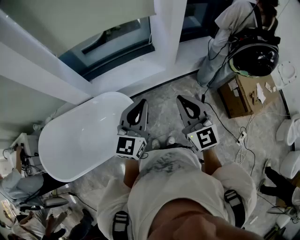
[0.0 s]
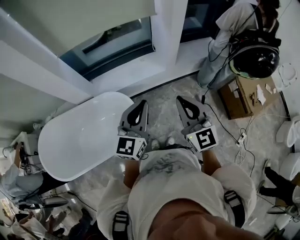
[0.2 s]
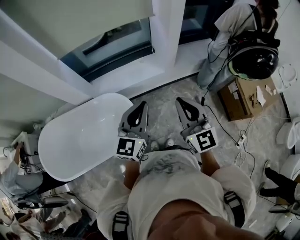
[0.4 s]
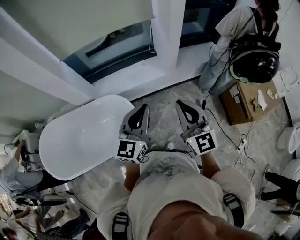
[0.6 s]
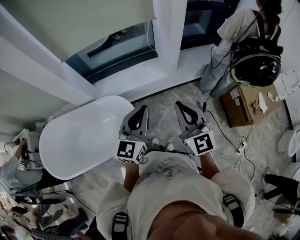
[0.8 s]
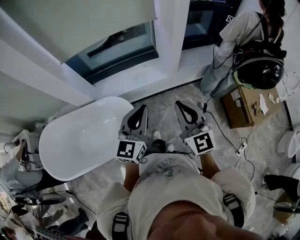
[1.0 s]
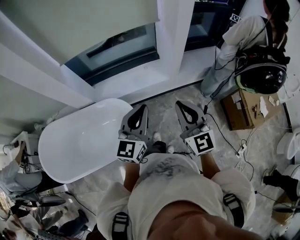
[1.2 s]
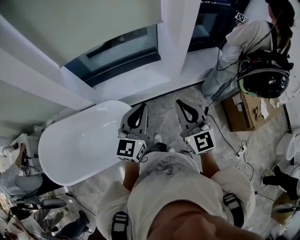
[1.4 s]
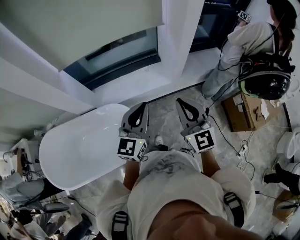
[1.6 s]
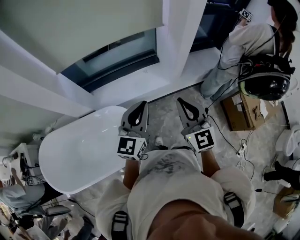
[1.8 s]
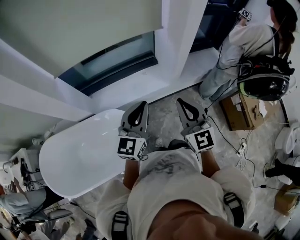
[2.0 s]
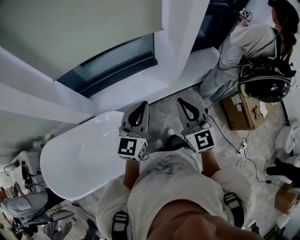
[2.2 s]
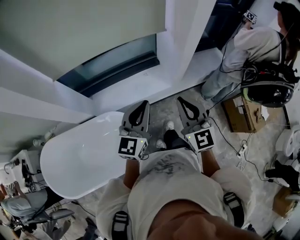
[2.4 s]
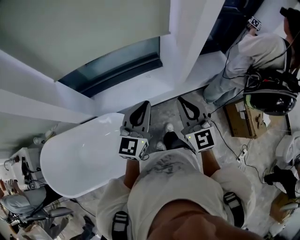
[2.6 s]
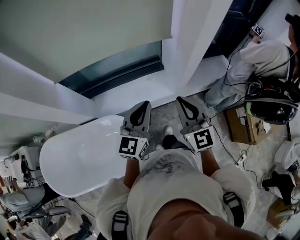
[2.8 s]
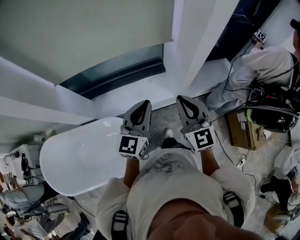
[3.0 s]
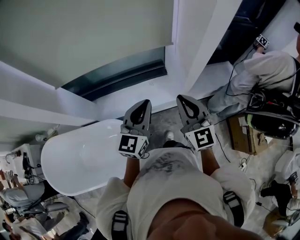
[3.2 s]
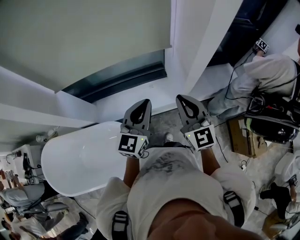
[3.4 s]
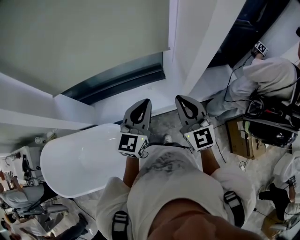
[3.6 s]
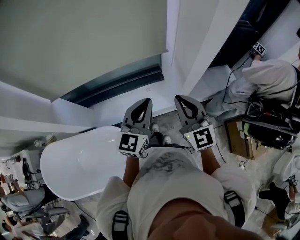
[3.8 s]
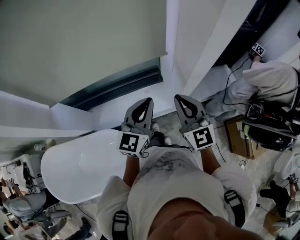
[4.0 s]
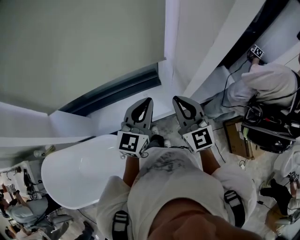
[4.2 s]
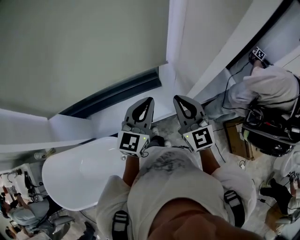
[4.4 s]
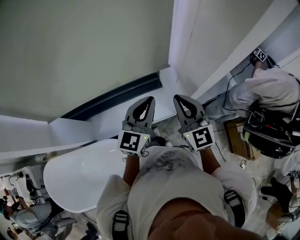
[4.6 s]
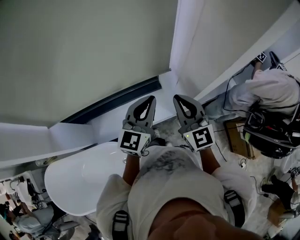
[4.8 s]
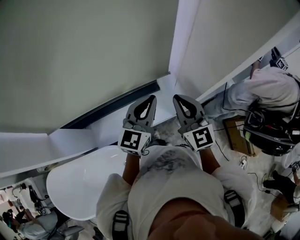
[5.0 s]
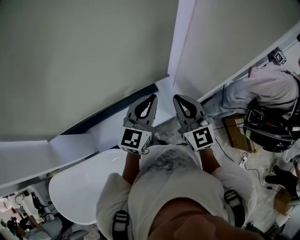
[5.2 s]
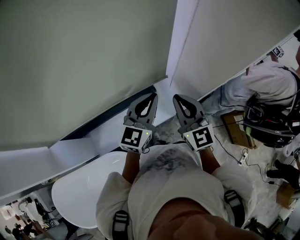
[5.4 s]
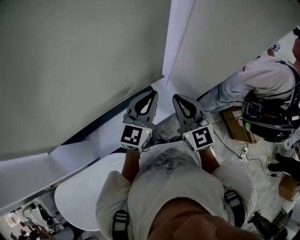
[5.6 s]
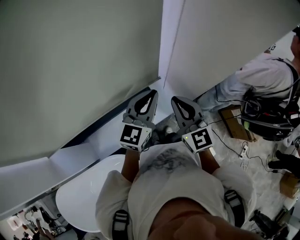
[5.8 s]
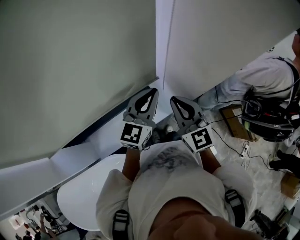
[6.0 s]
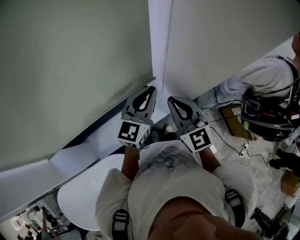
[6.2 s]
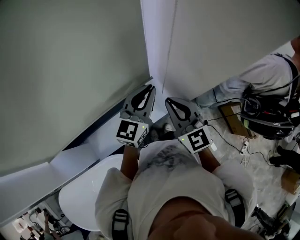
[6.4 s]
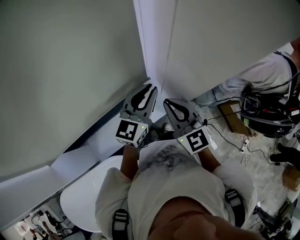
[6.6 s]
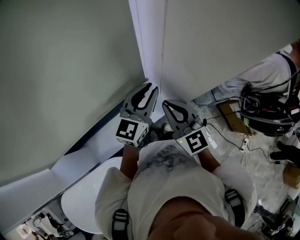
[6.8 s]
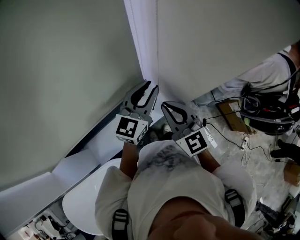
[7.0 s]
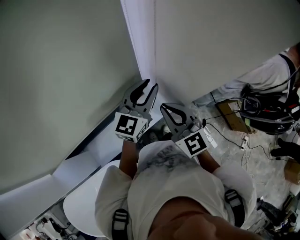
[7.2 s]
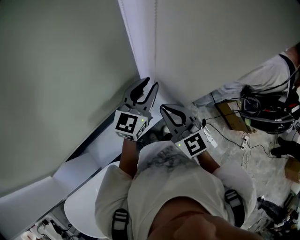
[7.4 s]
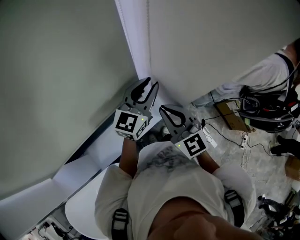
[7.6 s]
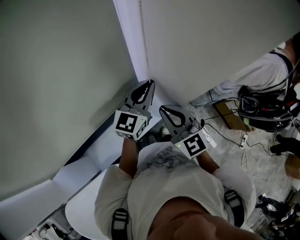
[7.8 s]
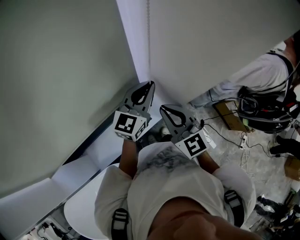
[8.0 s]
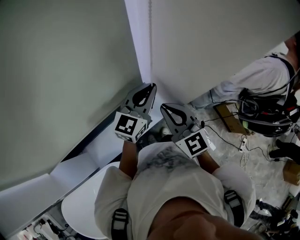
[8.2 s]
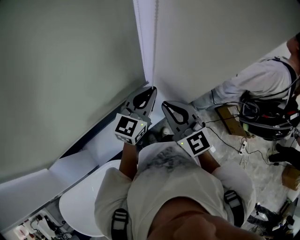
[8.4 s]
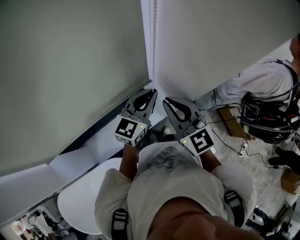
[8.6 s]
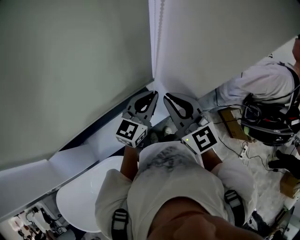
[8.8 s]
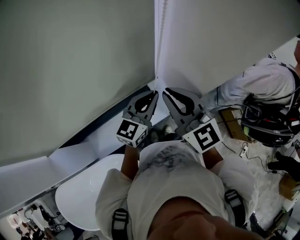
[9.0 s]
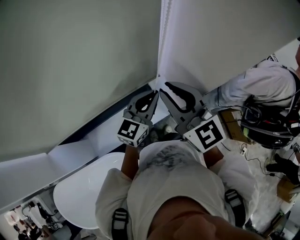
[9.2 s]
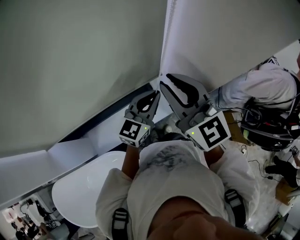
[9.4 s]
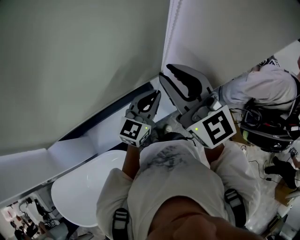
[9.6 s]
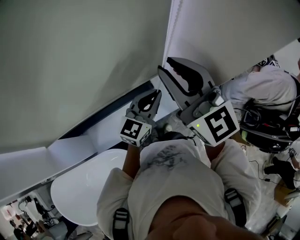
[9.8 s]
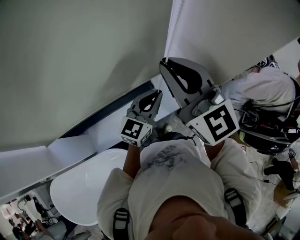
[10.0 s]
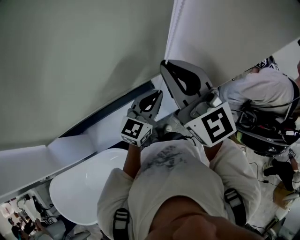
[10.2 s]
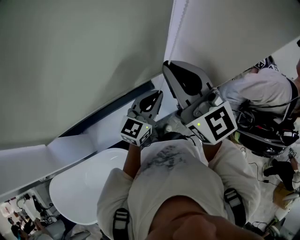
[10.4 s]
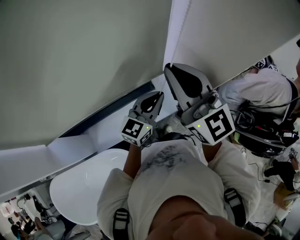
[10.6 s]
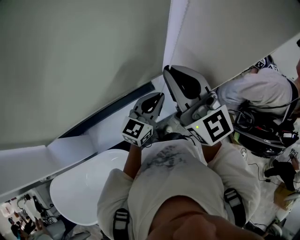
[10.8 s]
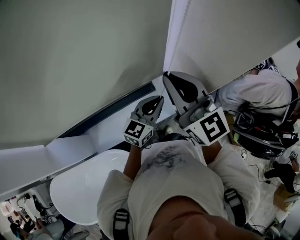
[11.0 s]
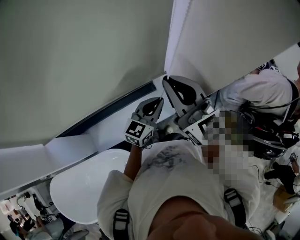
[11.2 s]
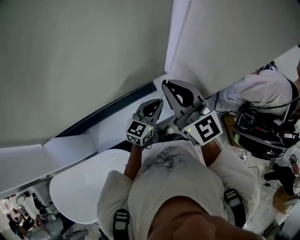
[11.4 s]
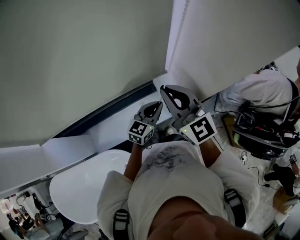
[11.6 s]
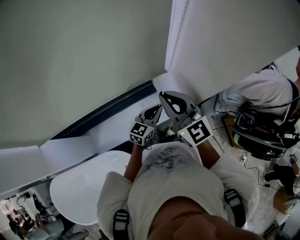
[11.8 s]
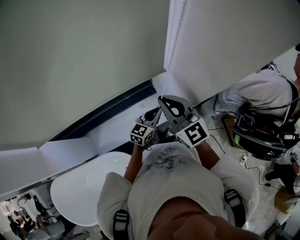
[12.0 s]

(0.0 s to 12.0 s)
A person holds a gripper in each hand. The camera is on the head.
0.0 s - 1.6 s: Both grippers travel together forward, roughly 10 cm.
1.6 s - 3.0 s: Both grippers move forward, approximately 15 cm.
3.0 s - 4.4 s: Both grippers travel together forward, about 15 cm.
4.4 s - 6.0 s: The right gripper moves forward, roughly 5 cm. Meanwhile the left gripper moves forward, approximately 10 cm.
6.0 s - 7.6 s: The left gripper is displaced forward by about 5 cm, and opens up.
7.6 s - 9.0 s: The right gripper goes some 10 cm upward. The left gripper shifts approximately 5 cm backward, and closes up.
9.0 s - 10.4 s: The right gripper heads upward, covering roughly 10 cm.
10.4 s - 12.0 s: The two grippers go about 15 cm downward.

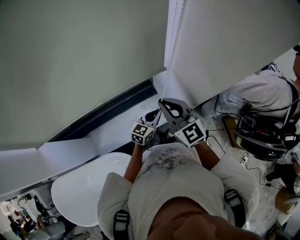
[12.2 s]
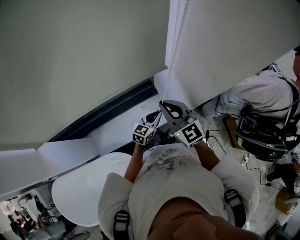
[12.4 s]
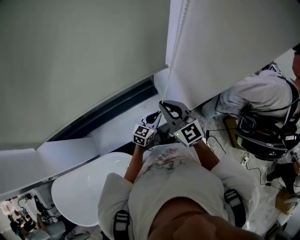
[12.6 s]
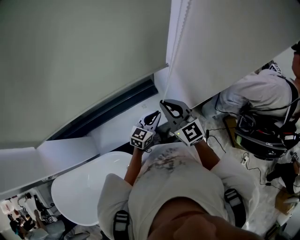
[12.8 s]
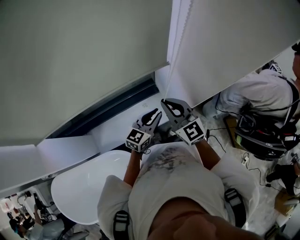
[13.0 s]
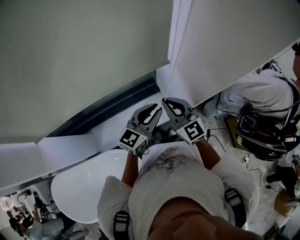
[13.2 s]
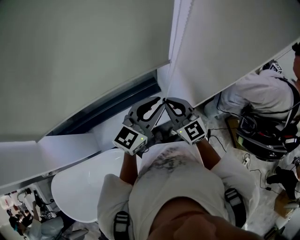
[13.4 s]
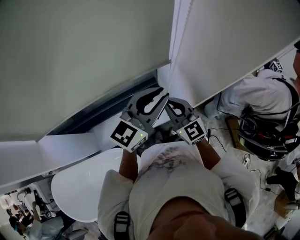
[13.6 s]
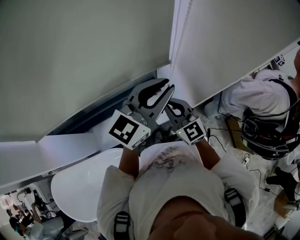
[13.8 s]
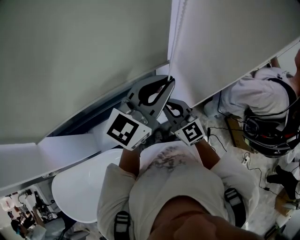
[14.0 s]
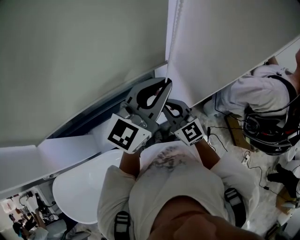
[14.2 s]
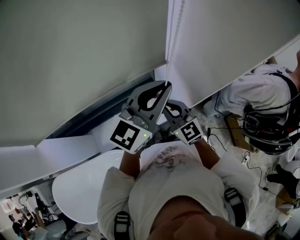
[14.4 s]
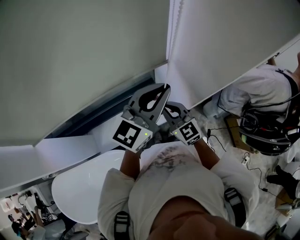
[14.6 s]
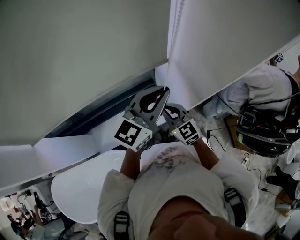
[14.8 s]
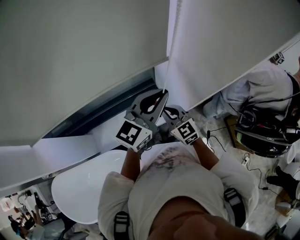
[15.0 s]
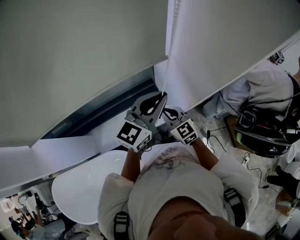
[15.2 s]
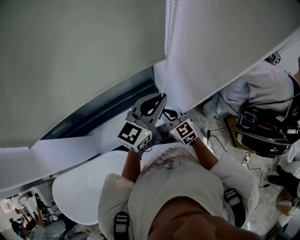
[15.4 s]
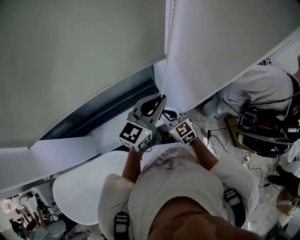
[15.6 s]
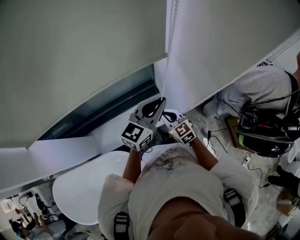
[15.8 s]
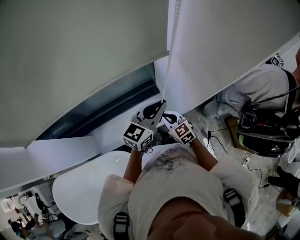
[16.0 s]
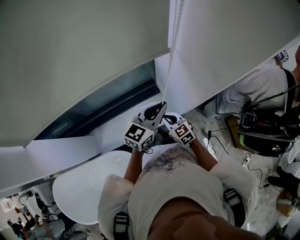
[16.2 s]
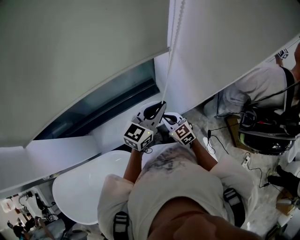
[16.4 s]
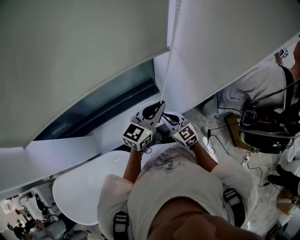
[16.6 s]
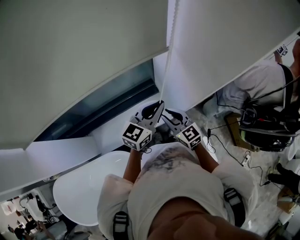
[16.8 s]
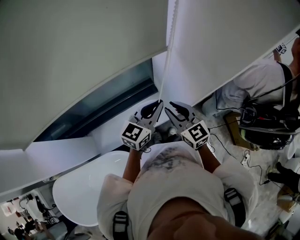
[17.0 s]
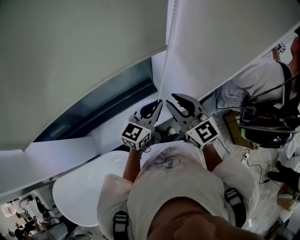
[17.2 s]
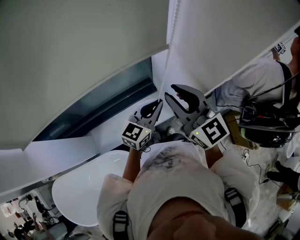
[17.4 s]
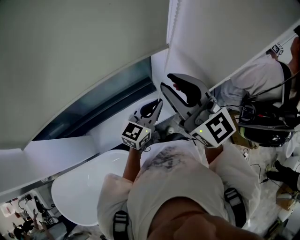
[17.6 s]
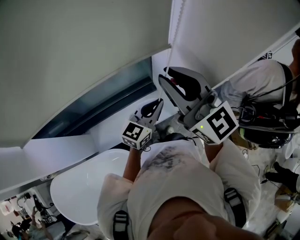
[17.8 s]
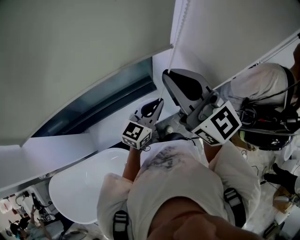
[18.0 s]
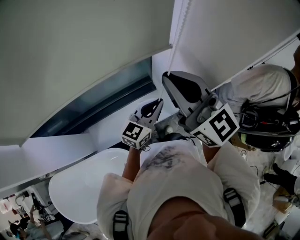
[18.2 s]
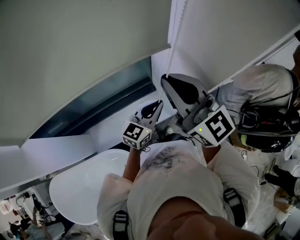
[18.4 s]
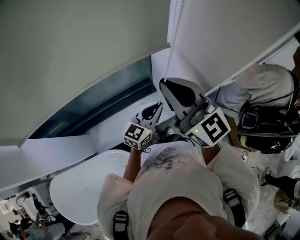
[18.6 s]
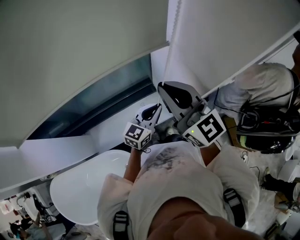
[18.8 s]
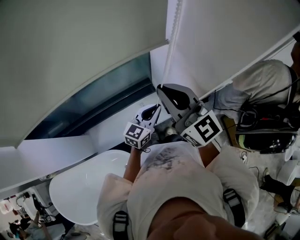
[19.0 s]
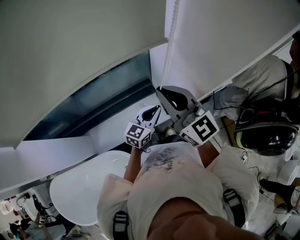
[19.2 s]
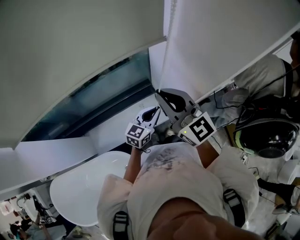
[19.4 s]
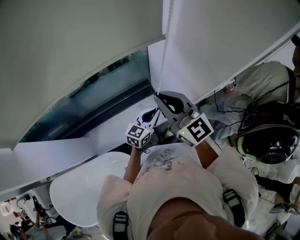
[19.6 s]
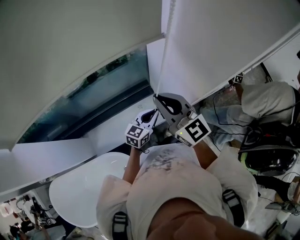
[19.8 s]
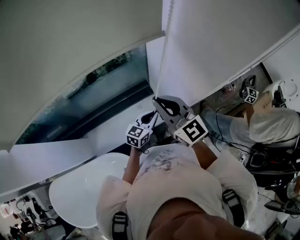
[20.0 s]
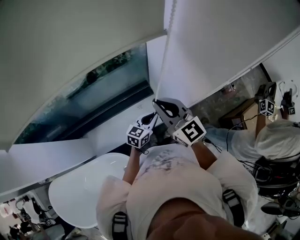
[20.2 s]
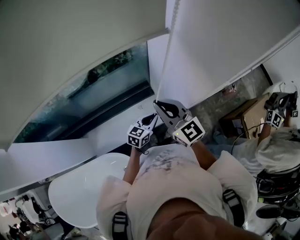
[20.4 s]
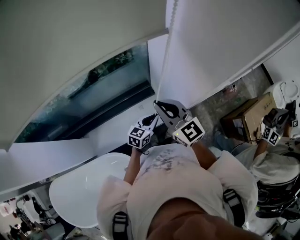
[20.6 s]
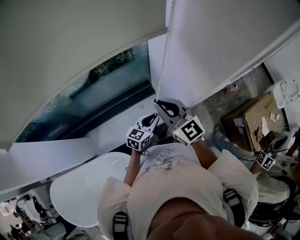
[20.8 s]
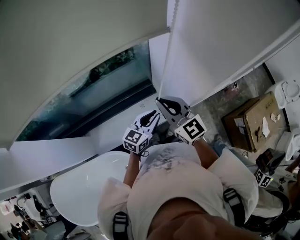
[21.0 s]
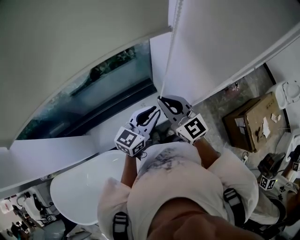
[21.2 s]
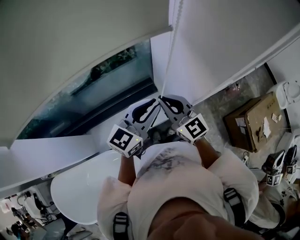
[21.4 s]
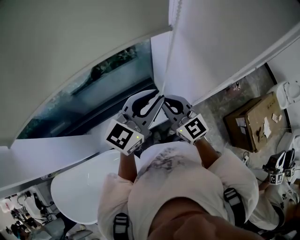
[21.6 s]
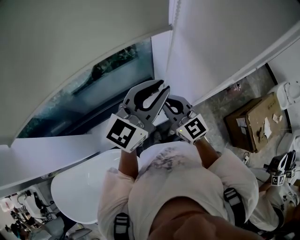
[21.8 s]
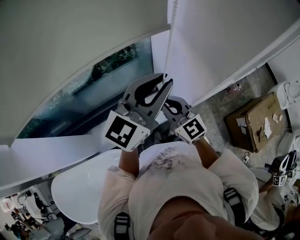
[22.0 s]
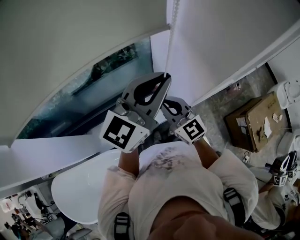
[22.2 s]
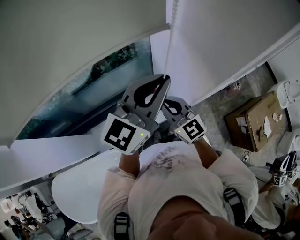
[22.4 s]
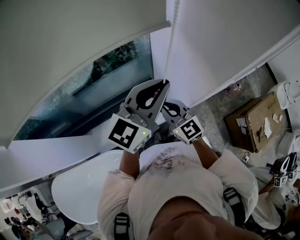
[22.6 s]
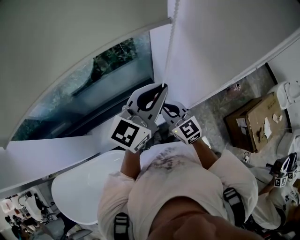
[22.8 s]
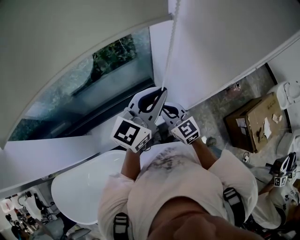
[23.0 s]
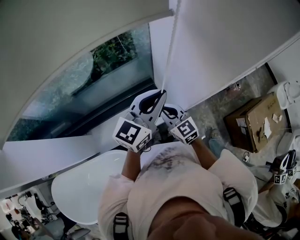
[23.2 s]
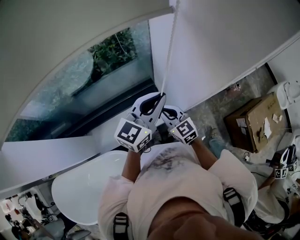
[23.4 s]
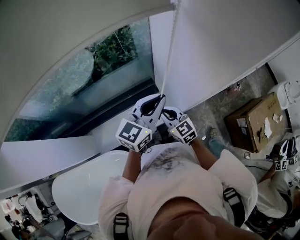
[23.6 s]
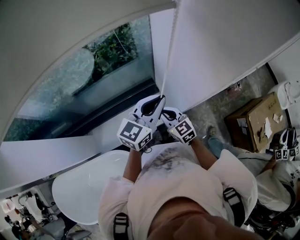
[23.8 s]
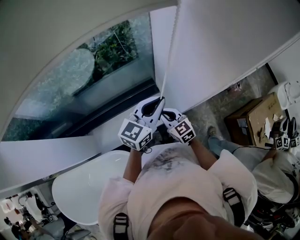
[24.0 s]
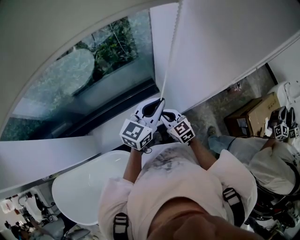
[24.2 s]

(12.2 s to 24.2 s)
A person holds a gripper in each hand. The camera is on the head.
12.2 s - 13.8 s: The left gripper is displaced upward by approximately 30 cm, and rotates approximately 30 degrees.
13.8 s - 15.2 s: The two grippers go some 10 cm downward.
15.2 s - 16.6 s: The right gripper is displaced downward by some 5 cm. Meanwhile the left gripper is displaced downward by approximately 10 cm.
16.6 s - 18.2 s: The right gripper shifts some 35 cm upward, and turns by about 30 degrees.
18.2 s - 19.8 s: Both grippers move downward, about 10 cm.
19.8 s - 21.2 s: The left gripper is displaced upward by roughly 10 cm. The right gripper goes approximately 5 cm downward.
21.2 s - 22.6 s: The left gripper is displaced upward by approximately 20 cm.
22.6 s - 24.2 s: Both grippers travel together downward, about 15 cm.
